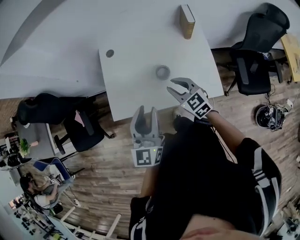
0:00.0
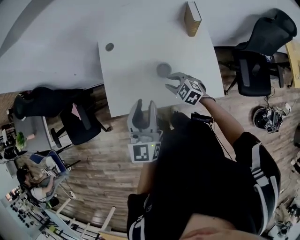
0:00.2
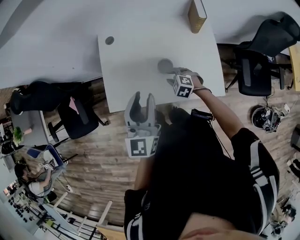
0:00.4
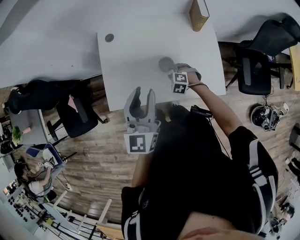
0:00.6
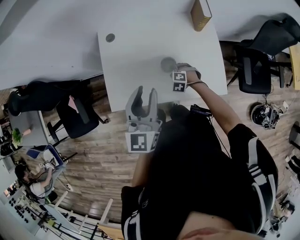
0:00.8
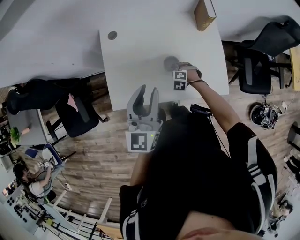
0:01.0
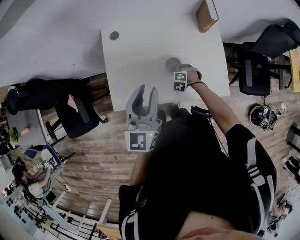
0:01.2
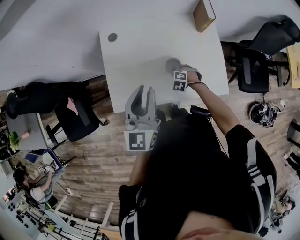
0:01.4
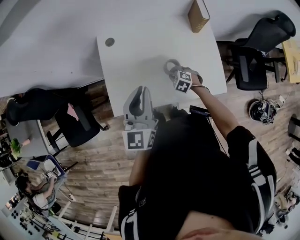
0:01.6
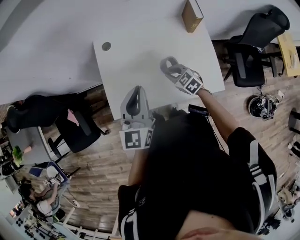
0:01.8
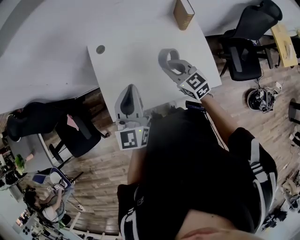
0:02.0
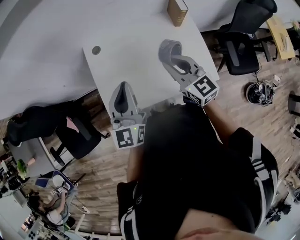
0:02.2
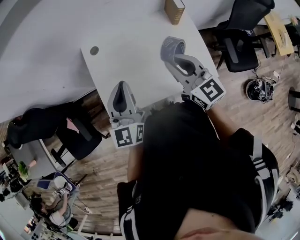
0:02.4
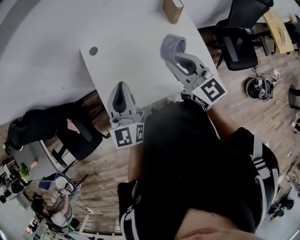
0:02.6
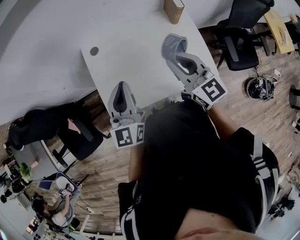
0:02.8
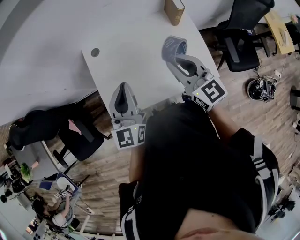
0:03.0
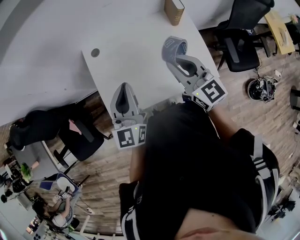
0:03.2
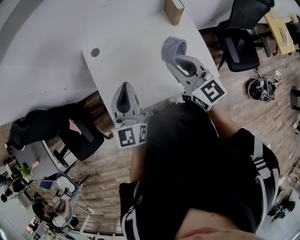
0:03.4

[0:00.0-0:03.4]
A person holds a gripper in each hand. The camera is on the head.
0:00.0 to 0:01.6: The left gripper goes roughly 10 cm forward and to the left; the right gripper moves downward, about 20 cm, and tilts its fingers roughly 40 degrees downward.
0:01.6 to 0:03.4: The right gripper travels upward by approximately 35 cm, and tips its fingers upward by about 60 degrees.

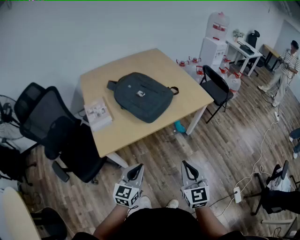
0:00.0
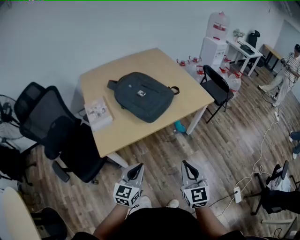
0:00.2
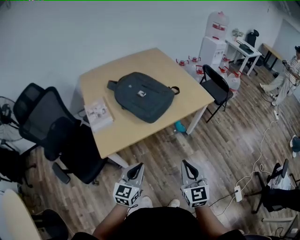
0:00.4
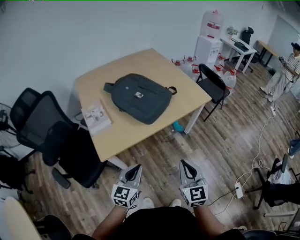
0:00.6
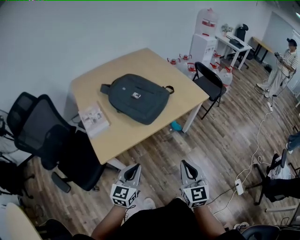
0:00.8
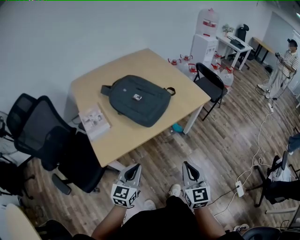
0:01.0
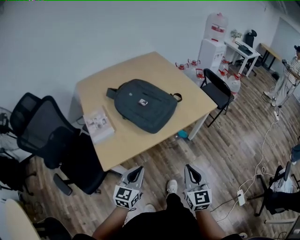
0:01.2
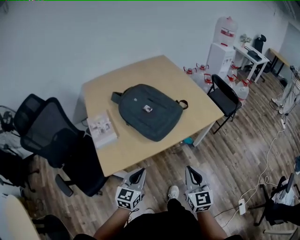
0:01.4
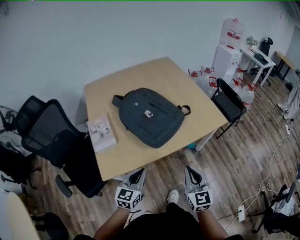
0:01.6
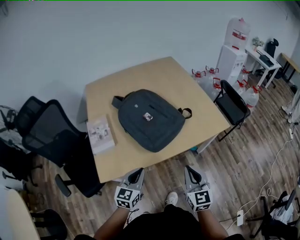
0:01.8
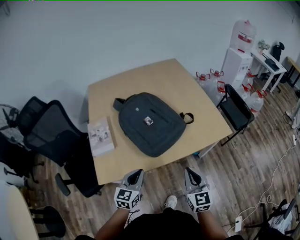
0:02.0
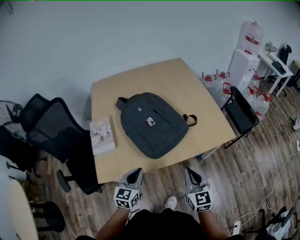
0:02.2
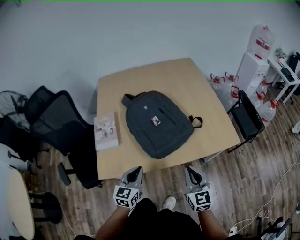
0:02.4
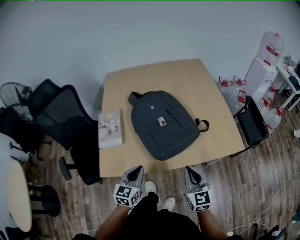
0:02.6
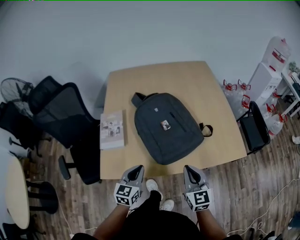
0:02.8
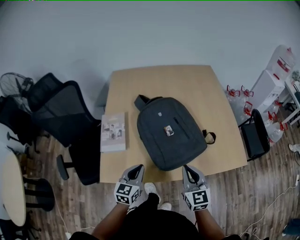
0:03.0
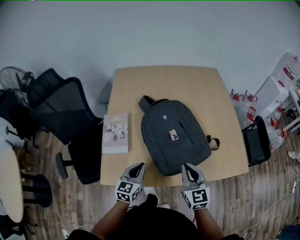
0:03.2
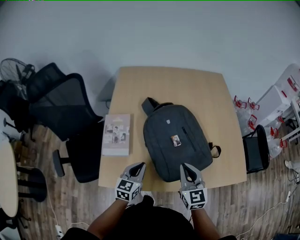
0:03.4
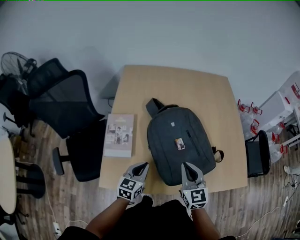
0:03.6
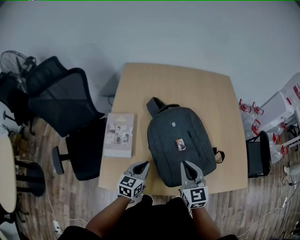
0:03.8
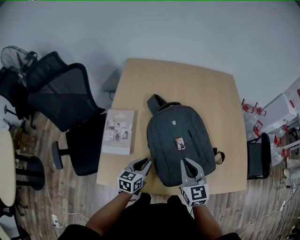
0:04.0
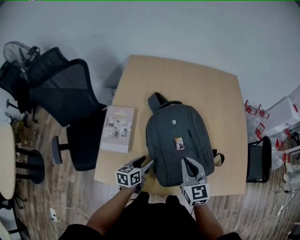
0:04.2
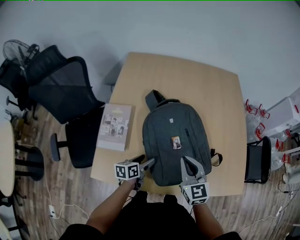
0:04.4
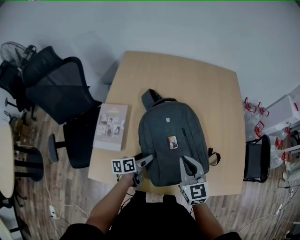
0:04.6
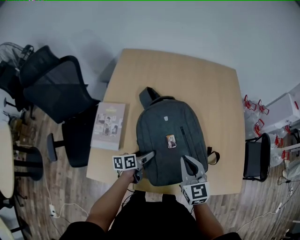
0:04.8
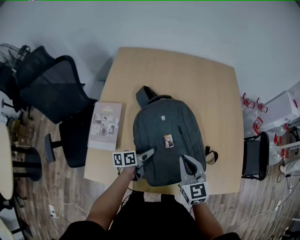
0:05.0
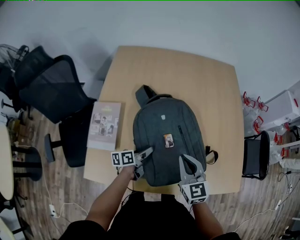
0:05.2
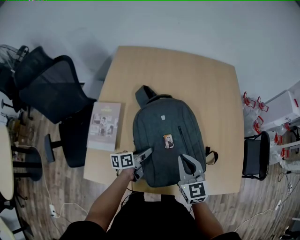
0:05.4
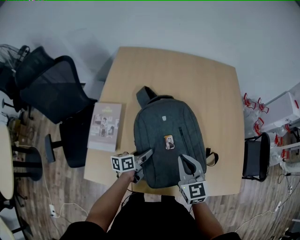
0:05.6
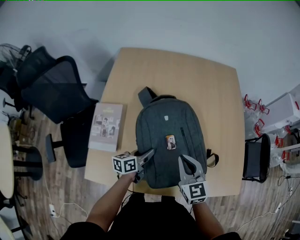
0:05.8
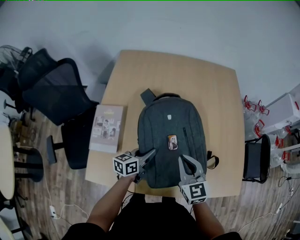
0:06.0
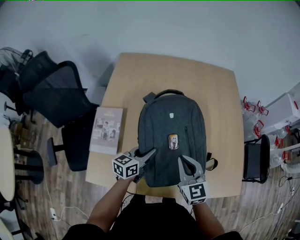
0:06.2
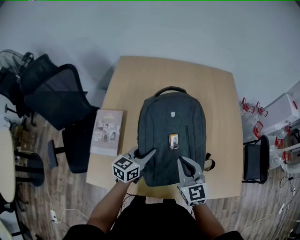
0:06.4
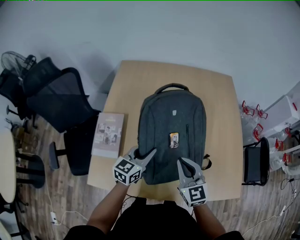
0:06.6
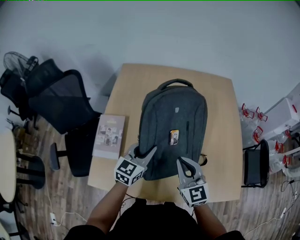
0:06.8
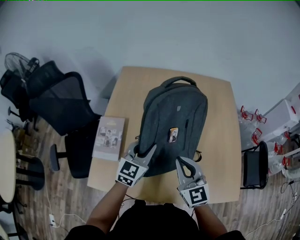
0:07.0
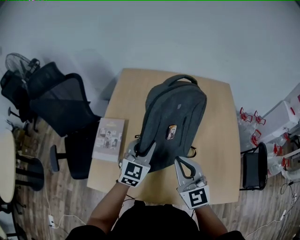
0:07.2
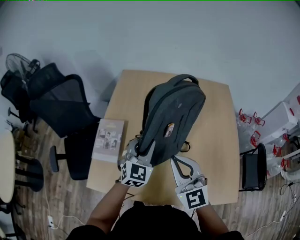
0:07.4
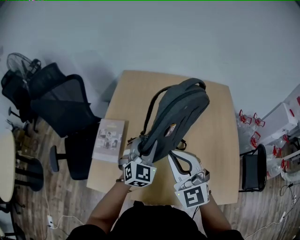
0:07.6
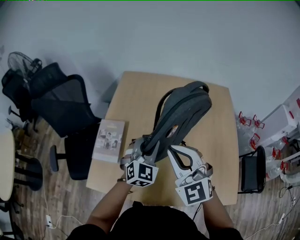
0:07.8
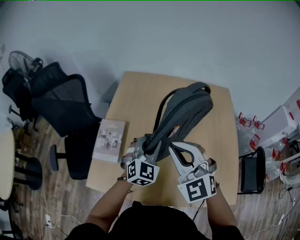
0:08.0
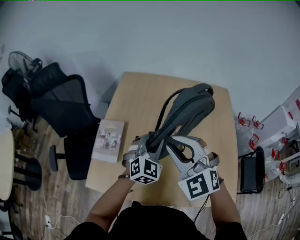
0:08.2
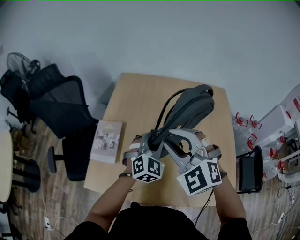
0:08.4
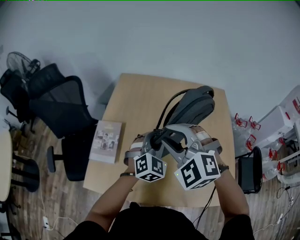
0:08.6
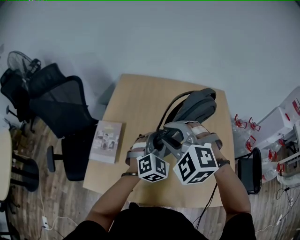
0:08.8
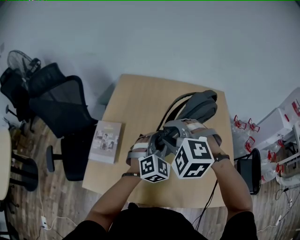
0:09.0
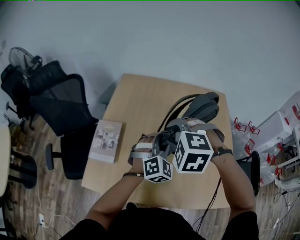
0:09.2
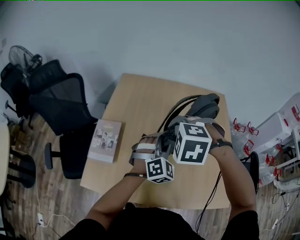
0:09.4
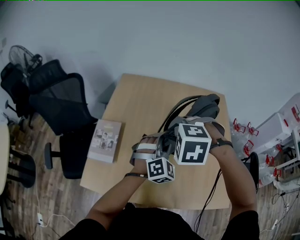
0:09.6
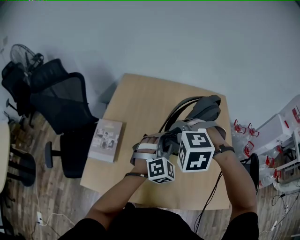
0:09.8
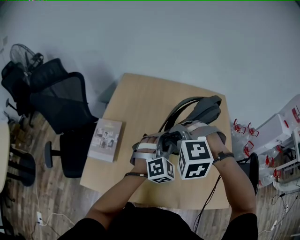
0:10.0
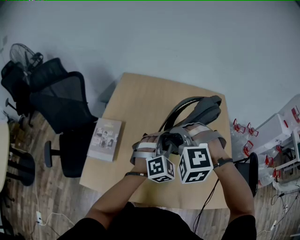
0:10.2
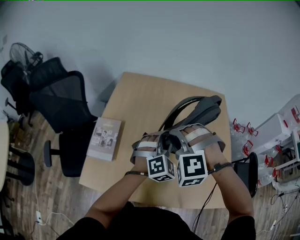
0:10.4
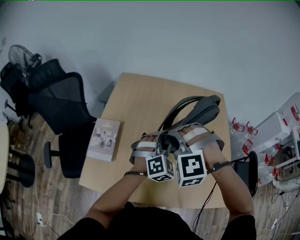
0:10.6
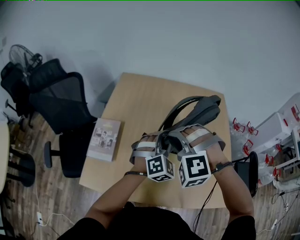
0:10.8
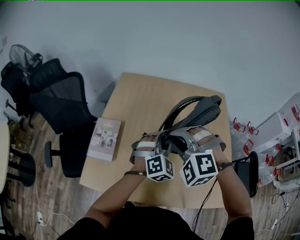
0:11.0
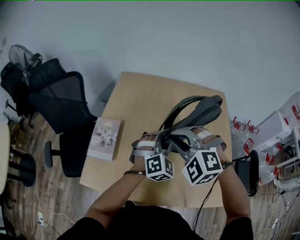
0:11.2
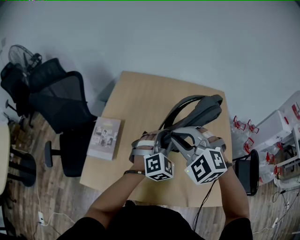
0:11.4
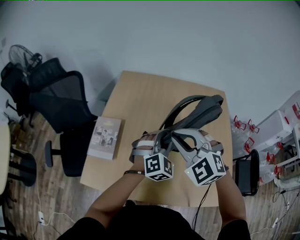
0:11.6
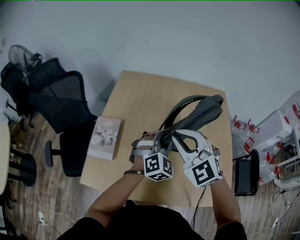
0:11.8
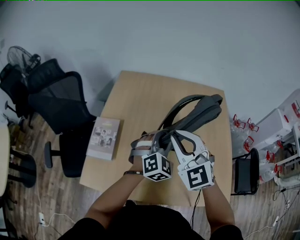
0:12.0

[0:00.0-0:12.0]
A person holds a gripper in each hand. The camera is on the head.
0:00.0 to 0:01.6: Both grippers move forward, about 15 cm.
0:01.6 to 0:03.0: The grippers both shift forward by roughly 15 cm. The right gripper swivels some 20 degrees, while the left gripper rotates about 20 degrees.
0:03.0 to 0:04.4: The left gripper moves forward and downward, approximately 15 cm, twists approximately 40 degrees counterclockwise, seen from behind, and opens its fingers; the right gripper shifts roughly 15 cm forward.
0:04.4 to 0:06.0: The left gripper goes some 10 cm forward and upward, and closes its fingers.
0:06.0 to 0:07.6: The two grippers go roughly 15 cm upward. The left gripper rotates around the line of its fingers by roughly 60 degrees, clockwise from behind, while the right gripper rotates some 30 degrees.
0:07.6 to 0:09.0: The right gripper heads forward, covering roughly 5 cm, points its fingers some 40 degrees further downward, and opens up. The left gripper goes roughly 5 cm to the right.
0:09.0 to 0:10.4: The right gripper rotates about 20 degrees.
0:10.4 to 0:12.0: The right gripper rolls clockwise, seen from behind, by about 50 degrees.

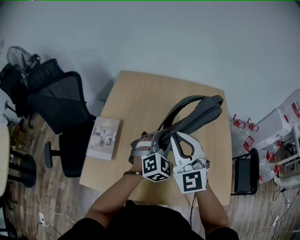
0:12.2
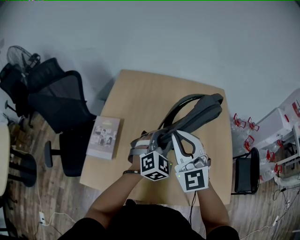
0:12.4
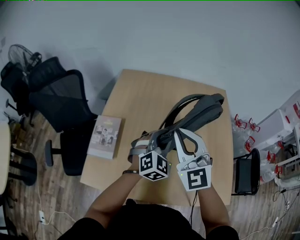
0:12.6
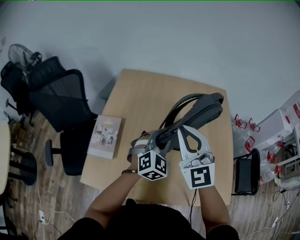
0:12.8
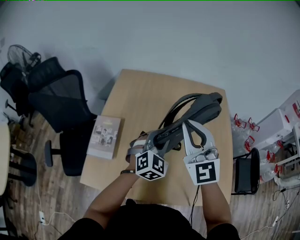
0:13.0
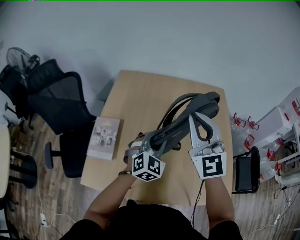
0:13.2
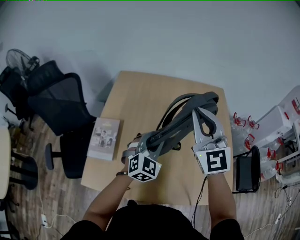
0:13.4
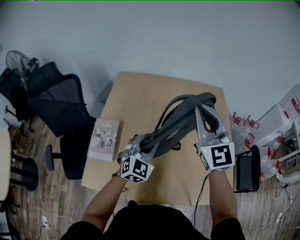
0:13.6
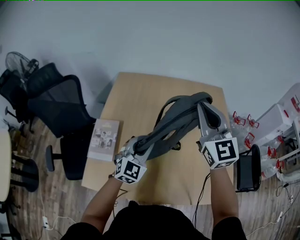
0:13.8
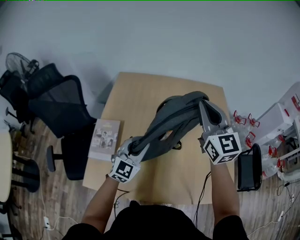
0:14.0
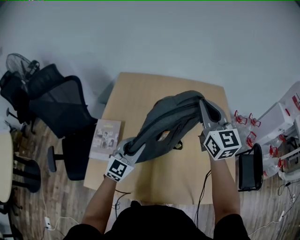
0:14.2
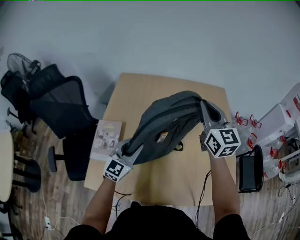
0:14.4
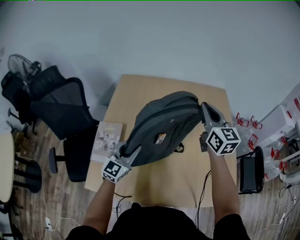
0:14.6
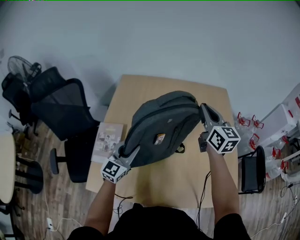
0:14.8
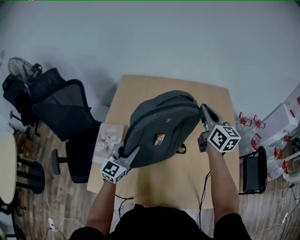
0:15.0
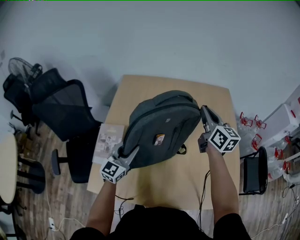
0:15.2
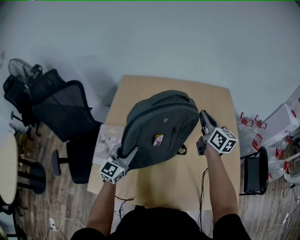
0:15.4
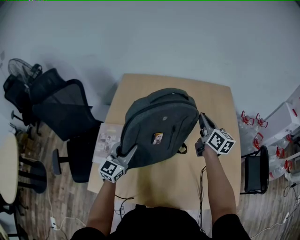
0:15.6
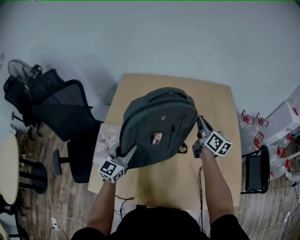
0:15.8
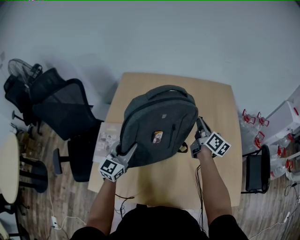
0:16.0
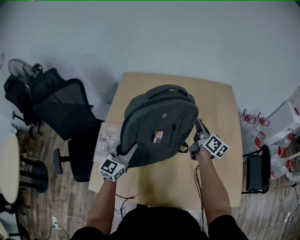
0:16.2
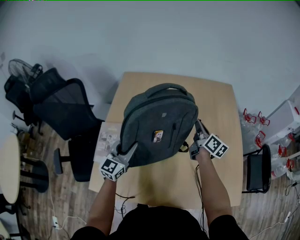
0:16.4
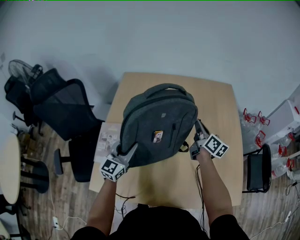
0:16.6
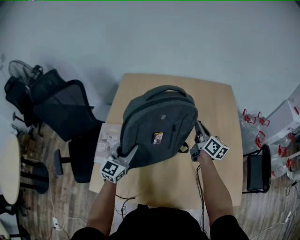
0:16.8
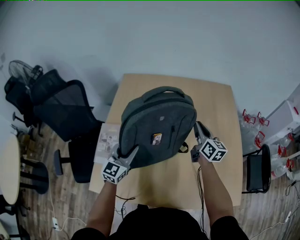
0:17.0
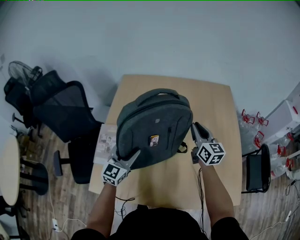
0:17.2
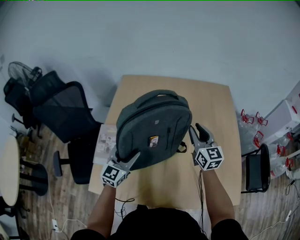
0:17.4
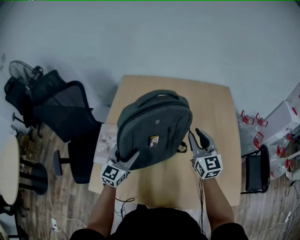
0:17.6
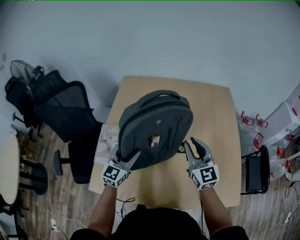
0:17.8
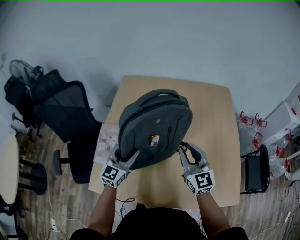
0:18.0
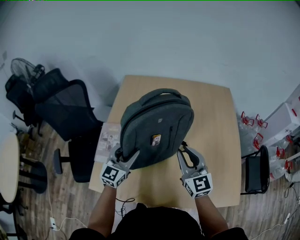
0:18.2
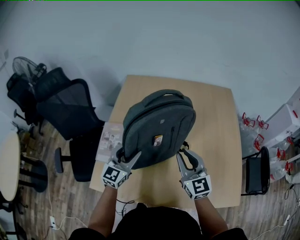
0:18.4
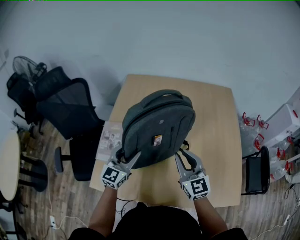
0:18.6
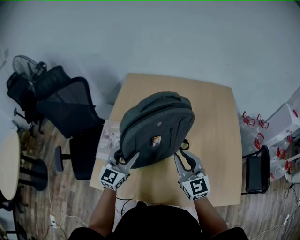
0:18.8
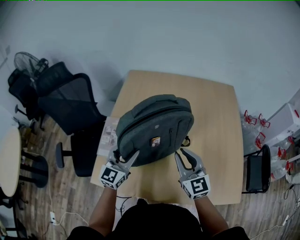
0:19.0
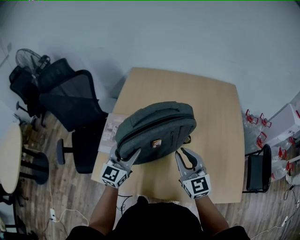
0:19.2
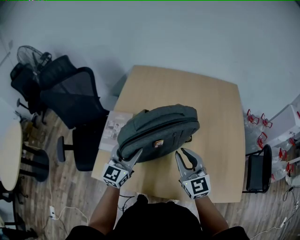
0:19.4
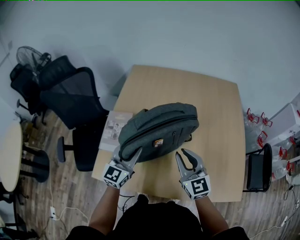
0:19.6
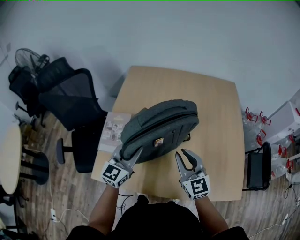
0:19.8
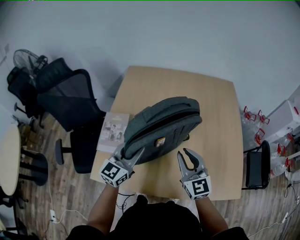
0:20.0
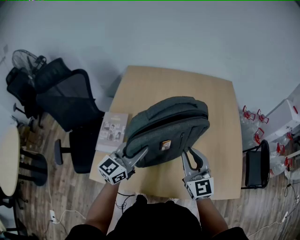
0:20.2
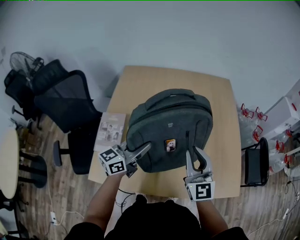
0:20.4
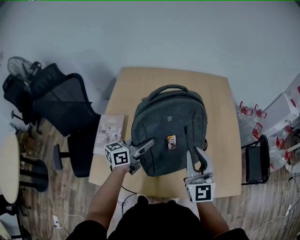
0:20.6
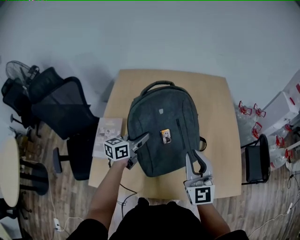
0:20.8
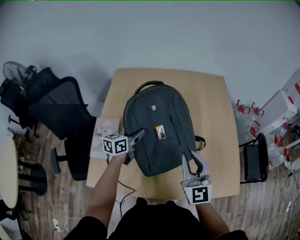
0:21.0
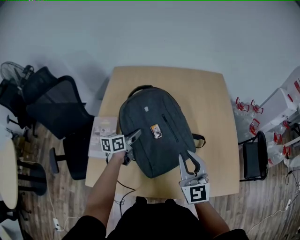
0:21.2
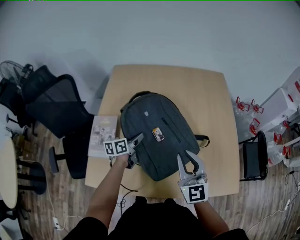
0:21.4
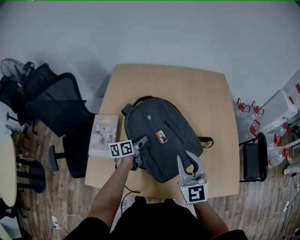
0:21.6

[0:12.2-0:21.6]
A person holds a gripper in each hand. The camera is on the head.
0:12.2 to 0:13.8: The left gripper is displaced to the left by roughly 10 cm. The right gripper travels upward, to the right and forward by some 15 cm, and changes its angle by roughly 20 degrees.
0:13.8 to 0:15.4: The left gripper moves to the left, roughly 10 cm, and rotates about 20 degrees. The right gripper goes approximately 20 cm downward and forward, and rotates around the line of its fingers by approximately 40 degrees, clockwise from behind.
0:15.4 to 0:17.0: The right gripper travels downward by approximately 10 cm.
0:17.0 to 0:18.4: The right gripper goes approximately 20 cm backward and to the left, and swivels some 30 degrees.
0:18.4 to 0:20.0: The left gripper shifts by some 5 cm, and closes up.
0:20.0 to 0:21.6: The left gripper moves downward and forward, approximately 20 cm, and twists some 50 degrees counterclockwise, seen from behind.
